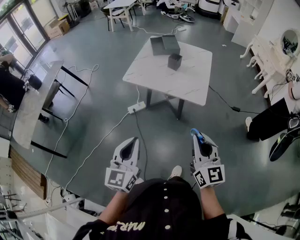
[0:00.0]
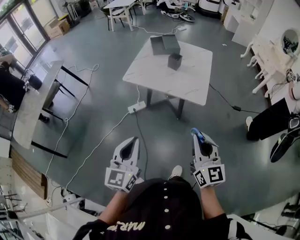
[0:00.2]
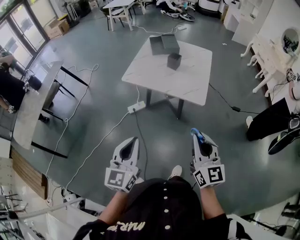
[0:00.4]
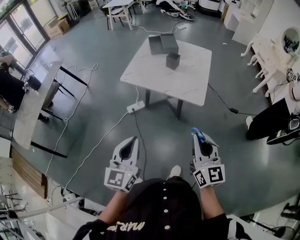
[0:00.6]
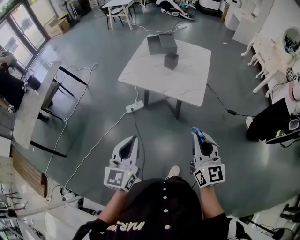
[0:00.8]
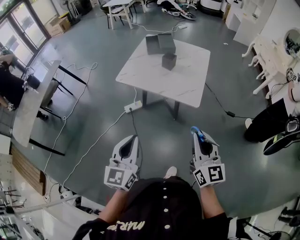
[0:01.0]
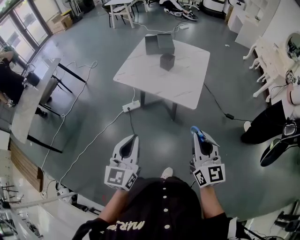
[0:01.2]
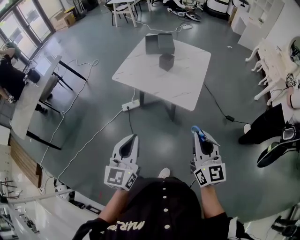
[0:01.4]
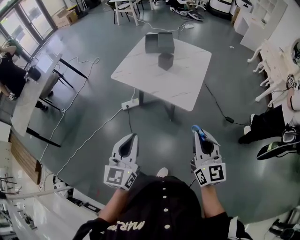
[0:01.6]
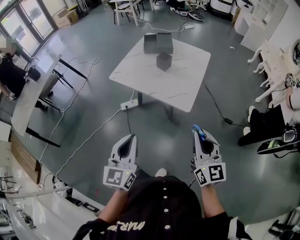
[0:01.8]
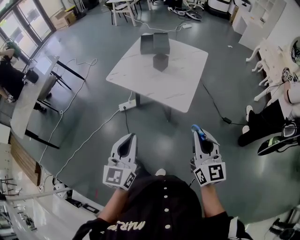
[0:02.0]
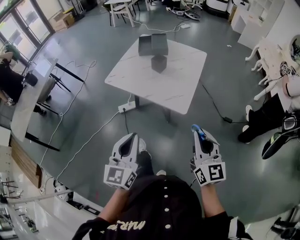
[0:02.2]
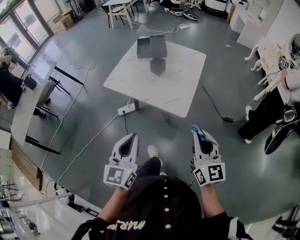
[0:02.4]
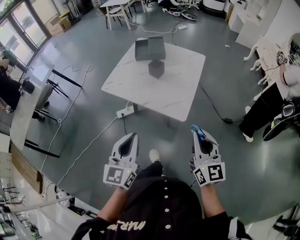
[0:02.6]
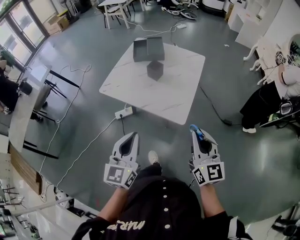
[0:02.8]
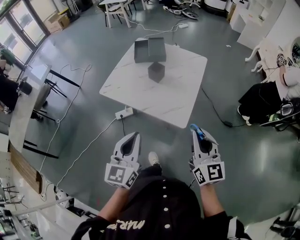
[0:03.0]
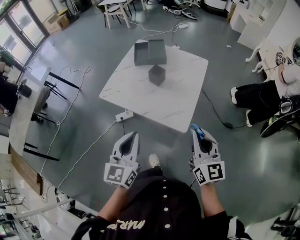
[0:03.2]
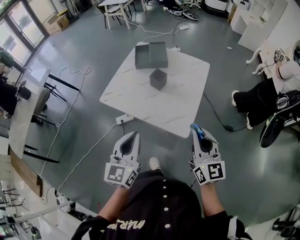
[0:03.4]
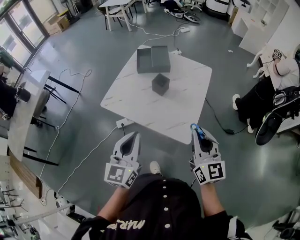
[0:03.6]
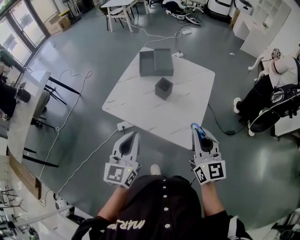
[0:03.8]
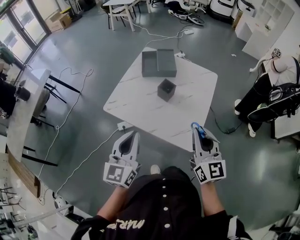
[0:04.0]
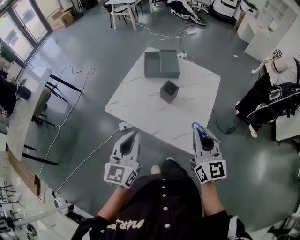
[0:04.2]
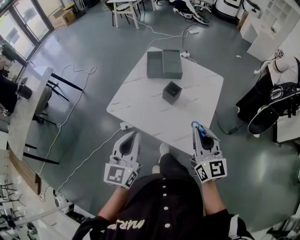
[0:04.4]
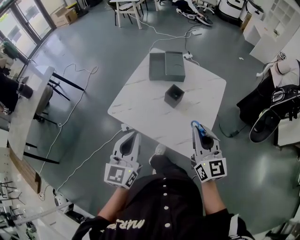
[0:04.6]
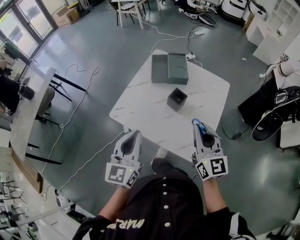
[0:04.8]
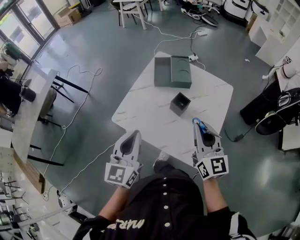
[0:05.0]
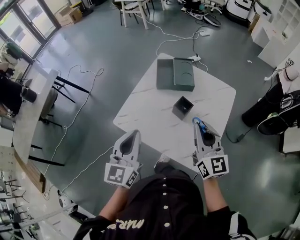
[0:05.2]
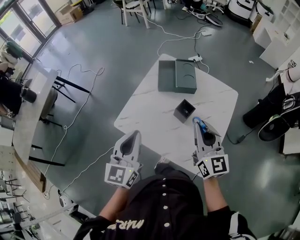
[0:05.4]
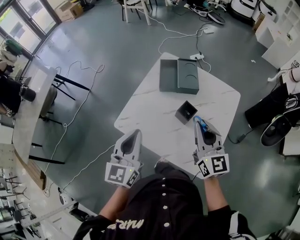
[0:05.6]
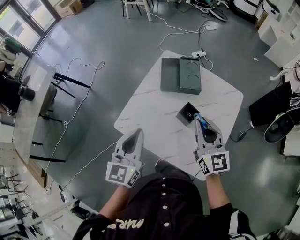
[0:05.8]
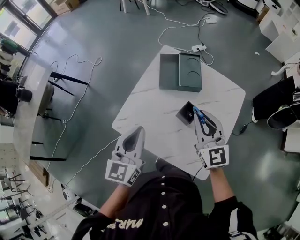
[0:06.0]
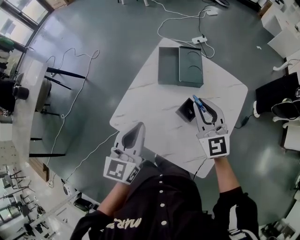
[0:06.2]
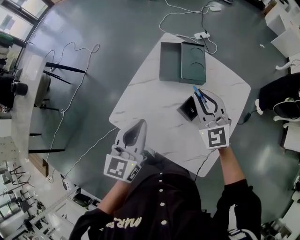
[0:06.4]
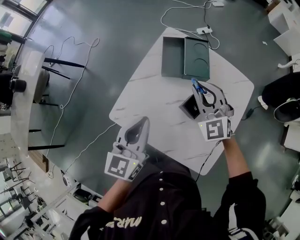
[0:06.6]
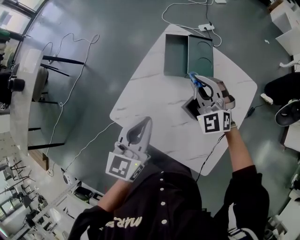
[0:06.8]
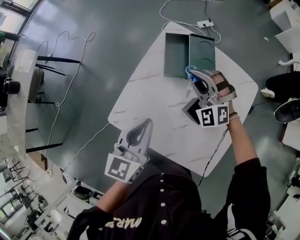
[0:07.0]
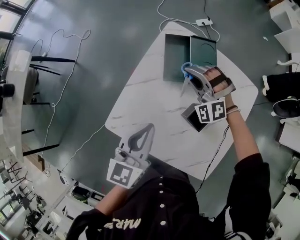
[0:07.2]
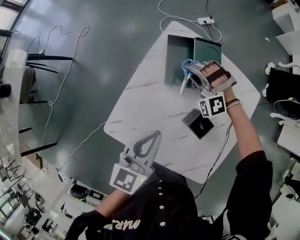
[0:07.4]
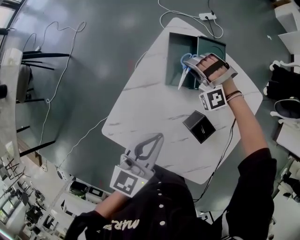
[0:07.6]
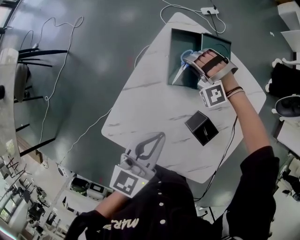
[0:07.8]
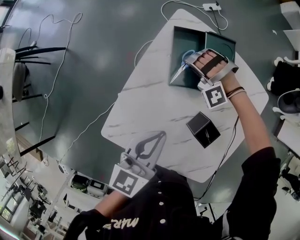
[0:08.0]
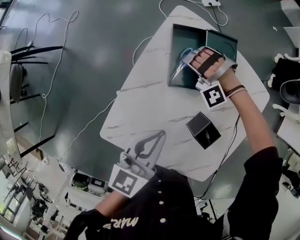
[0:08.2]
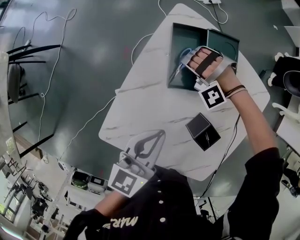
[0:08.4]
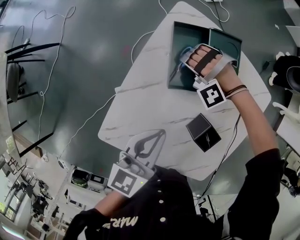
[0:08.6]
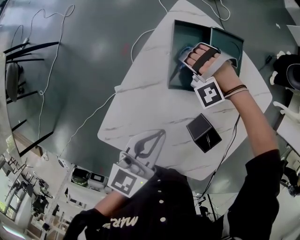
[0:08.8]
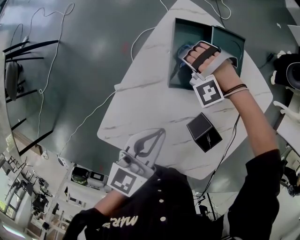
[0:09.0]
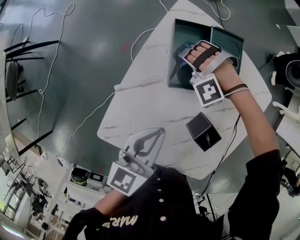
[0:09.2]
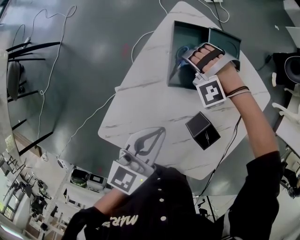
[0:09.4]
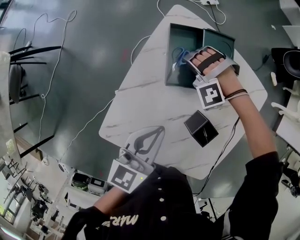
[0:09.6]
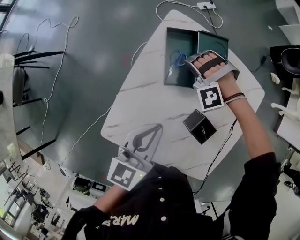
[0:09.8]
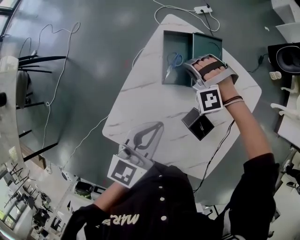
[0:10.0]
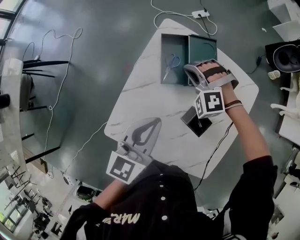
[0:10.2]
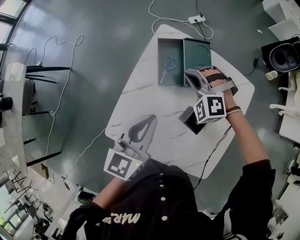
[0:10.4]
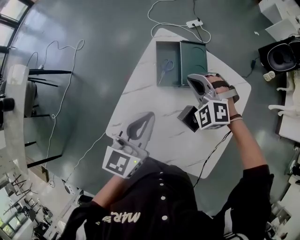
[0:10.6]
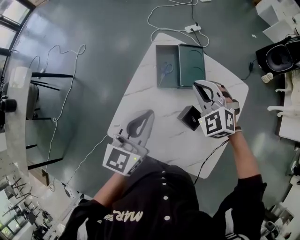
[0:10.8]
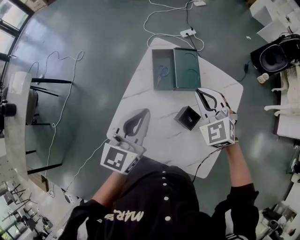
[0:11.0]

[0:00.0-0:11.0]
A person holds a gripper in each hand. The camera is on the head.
0:00.0 to 0:01.6: The right gripper goes approximately 20 cm to the right and forward; the left gripper heads to the right, covering roughly 15 cm.
0:01.6 to 0:03.2: The grippers both shift forward by some 20 cm.
0:03.2 to 0:04.8: The grippers both shift forward and to the left by some 25 cm.
0:04.8 to 0:06.2: The grippers both shift forward by about 20 cm. The right gripper swivels approximately 20 degrees.
0:06.2 to 0:07.8: The left gripper travels forward and downward by some 15 cm. The right gripper goes roughly 35 cm forward and downward, and rolls counterclockwise, seen from behind, by about 80 degrees.
0:07.8 to 0:09.4: The right gripper shifts about 5 cm downward, and opens; the left gripper changes place by roughly 5 cm.
0:09.4 to 0:11.0: The left gripper shifts roughly 15 cm upward, and swivels roughly 20 degrees. The right gripper heads upward and backward, covering roughly 30 cm, twists roughly 70 degrees clockwise, seen from behind, and closes its fingers.

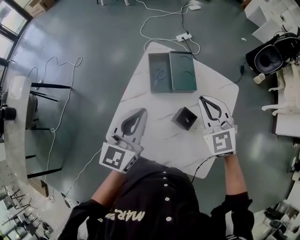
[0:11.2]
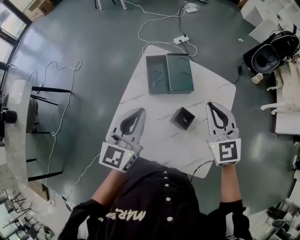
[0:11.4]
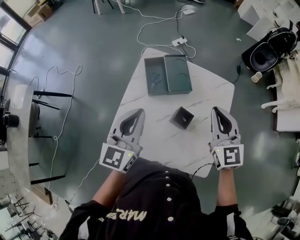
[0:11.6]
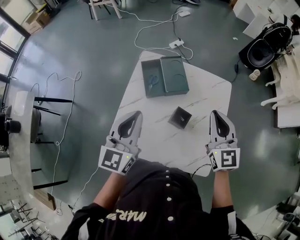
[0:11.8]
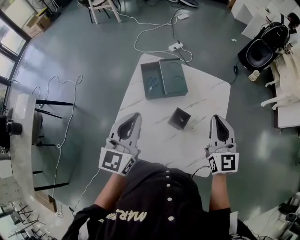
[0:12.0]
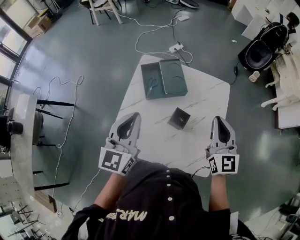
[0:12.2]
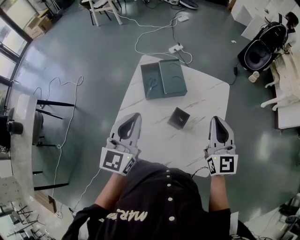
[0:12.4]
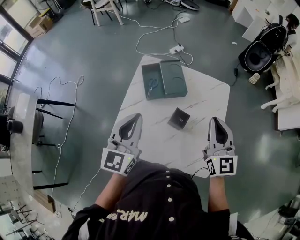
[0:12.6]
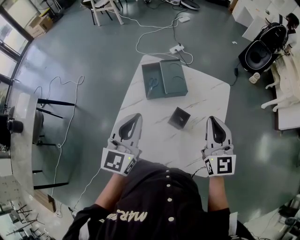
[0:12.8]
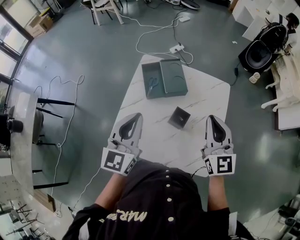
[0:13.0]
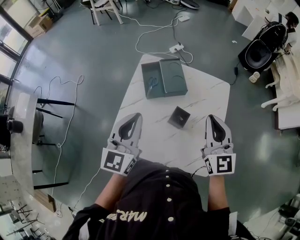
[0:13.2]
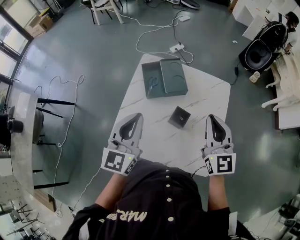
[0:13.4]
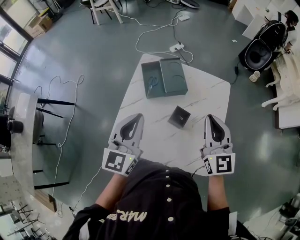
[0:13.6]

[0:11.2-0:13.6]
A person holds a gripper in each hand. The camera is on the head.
0:11.2 to 0:12.4: The left gripper ends up about 5 cm from where it was. Meanwhile the right gripper is displaced to the right and backward by roughly 15 cm, and changes its angle by about 40 degrees.
0:12.4 to 0:13.6: The grippers stay close to where they were, moving slightly.

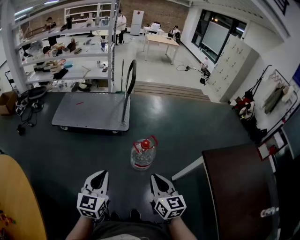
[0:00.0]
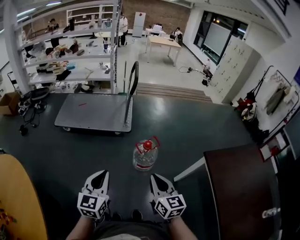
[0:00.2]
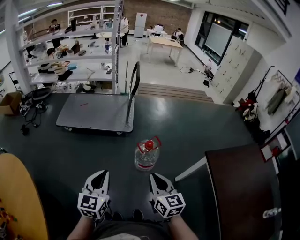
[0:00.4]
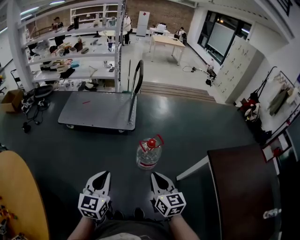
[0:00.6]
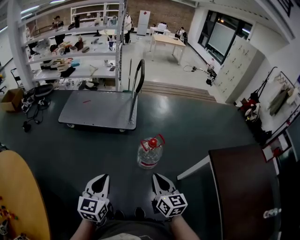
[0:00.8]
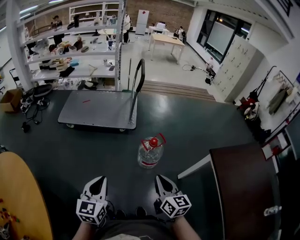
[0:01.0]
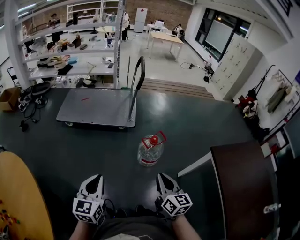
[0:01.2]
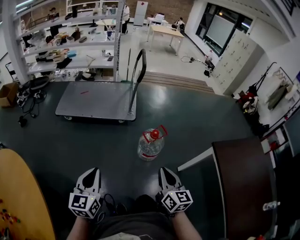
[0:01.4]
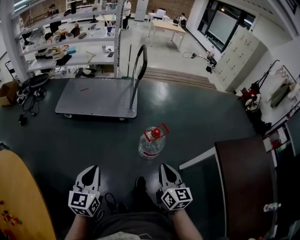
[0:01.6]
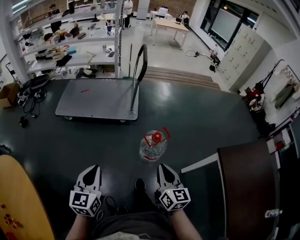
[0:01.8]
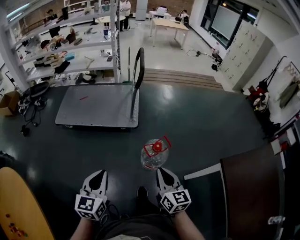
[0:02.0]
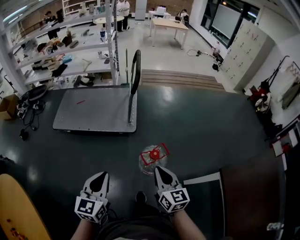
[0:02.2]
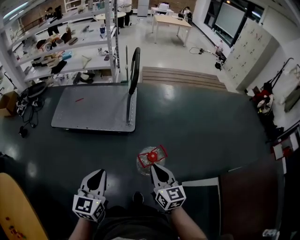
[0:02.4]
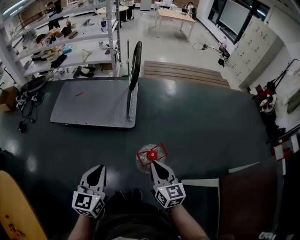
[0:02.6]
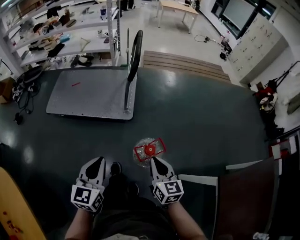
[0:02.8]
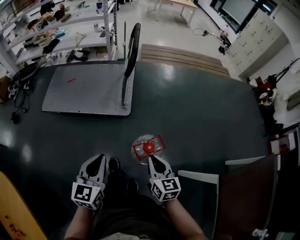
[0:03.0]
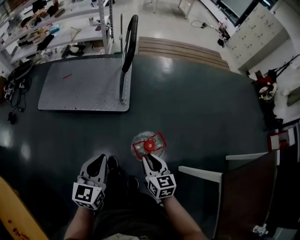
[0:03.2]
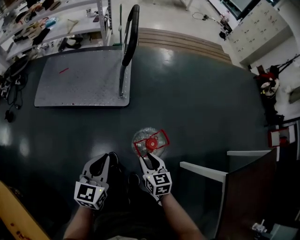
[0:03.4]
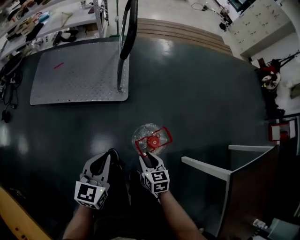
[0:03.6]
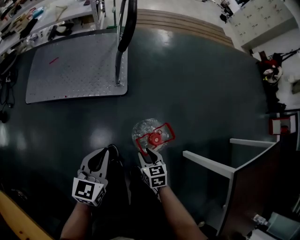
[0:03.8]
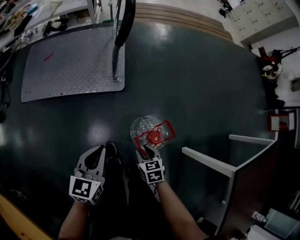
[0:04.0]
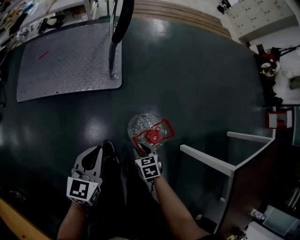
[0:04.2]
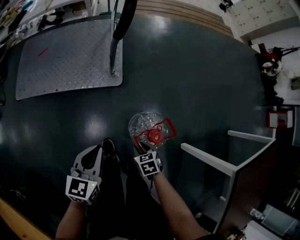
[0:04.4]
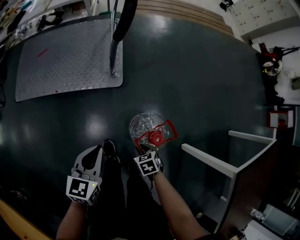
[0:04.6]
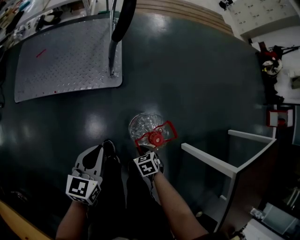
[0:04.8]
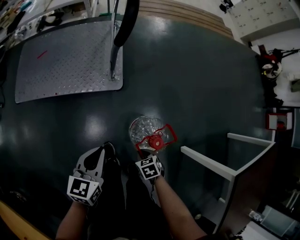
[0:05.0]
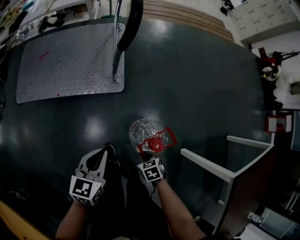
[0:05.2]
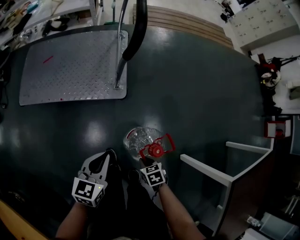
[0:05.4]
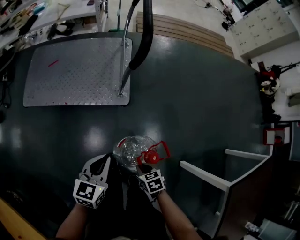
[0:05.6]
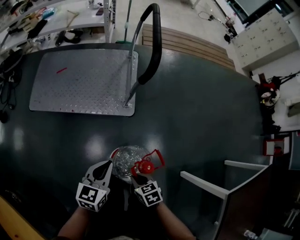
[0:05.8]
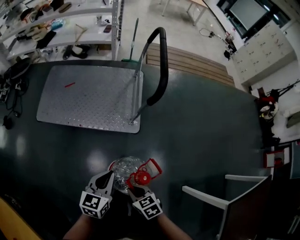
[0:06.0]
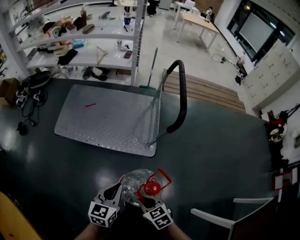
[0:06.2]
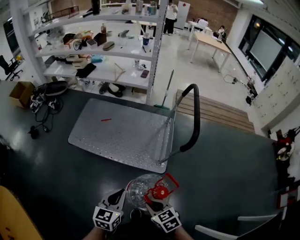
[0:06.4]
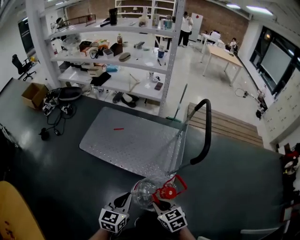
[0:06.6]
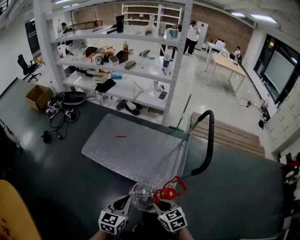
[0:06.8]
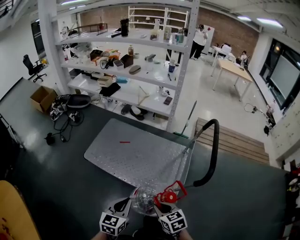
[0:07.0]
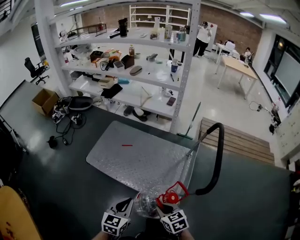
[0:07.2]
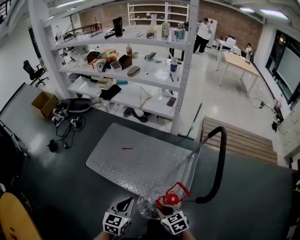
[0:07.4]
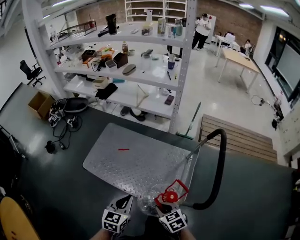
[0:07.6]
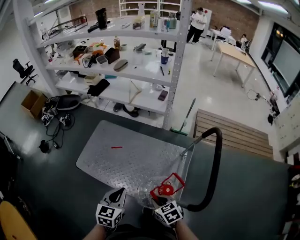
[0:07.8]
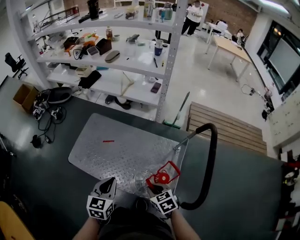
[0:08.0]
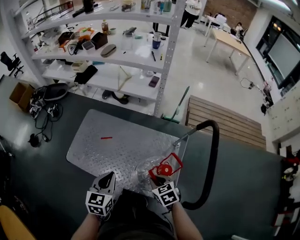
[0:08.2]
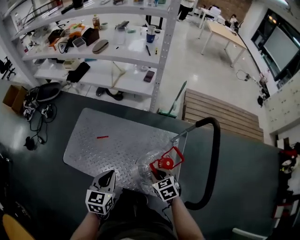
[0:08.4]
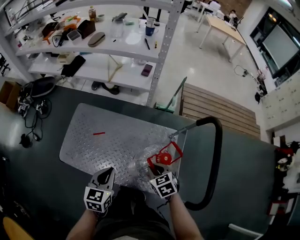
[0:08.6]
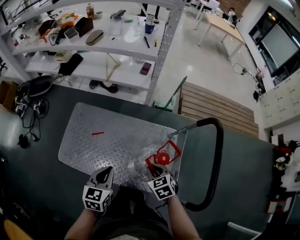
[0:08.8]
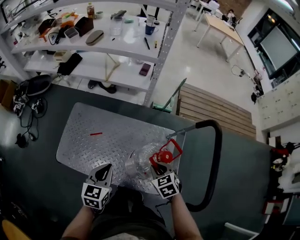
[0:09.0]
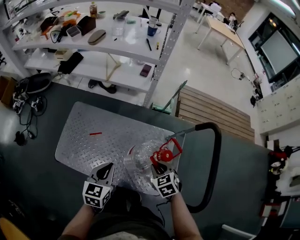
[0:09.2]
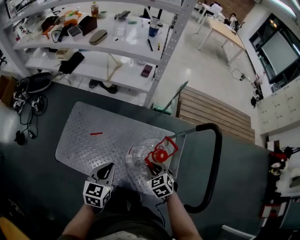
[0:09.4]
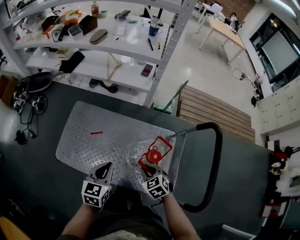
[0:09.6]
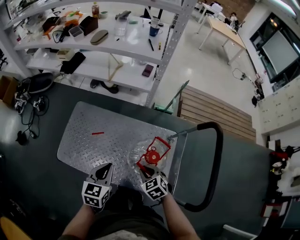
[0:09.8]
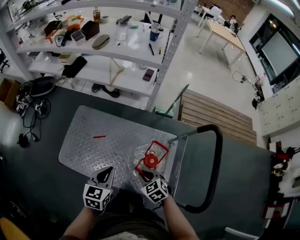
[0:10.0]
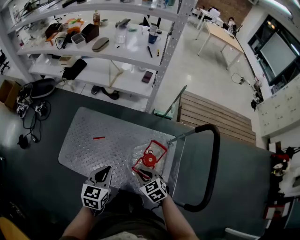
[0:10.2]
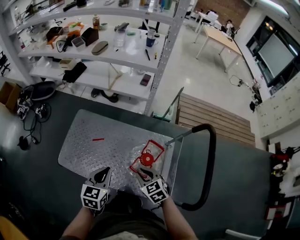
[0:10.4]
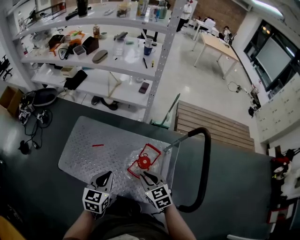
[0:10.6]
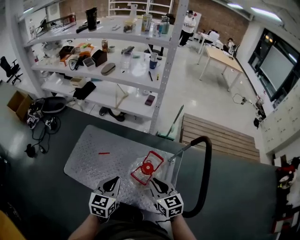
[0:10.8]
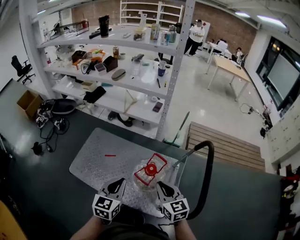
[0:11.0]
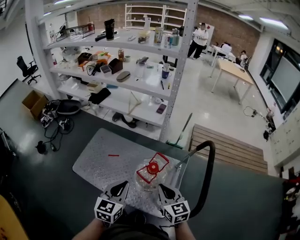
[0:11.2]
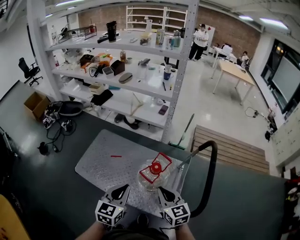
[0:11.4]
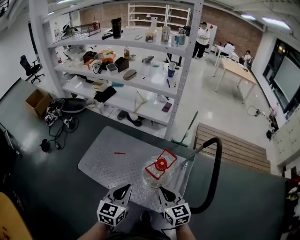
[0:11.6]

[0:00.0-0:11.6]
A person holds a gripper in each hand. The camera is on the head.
0:00.0 to 0:01.4: The left gripper is displaced to the left by roughly 10 cm.
0:01.4 to 0:02.8: The right gripper is displaced forward by some 30 cm. The left gripper heads forward and to the right, covering approximately 35 cm.
0:02.8 to 0:04.4: The right gripper is displaced downward by approximately 35 cm, tips its fingers downward by roughly 50 degrees, and opens its fingers. The left gripper travels downward and forward by about 25 cm, and changes its angle by roughly 20 degrees.
0:04.4 to 0:05.8: The left gripper changes place by roughly 5 cm. The right gripper shifts approximately 15 cm upward and to the left, and closes its fingers.
0:05.8 to 0:07.2: The right gripper is displaced forward and upward by about 35 cm, and rotates some 30 degrees; the left gripper heads forward, to the left and upward, covering approximately 30 cm, and changes its angle by some 30 degrees.
0:07.2 to 0:08.8: The two grippers go approximately 35 cm forward.
0:08.8 to 0:10.2: The right gripper goes approximately 5 cm to the left.
0:10.2 to 0:11.6: The right gripper shifts about 20 cm upward and backward, and rotates approximately 30 degrees, while the left gripper is displaced backward and upward by some 20 cm.
